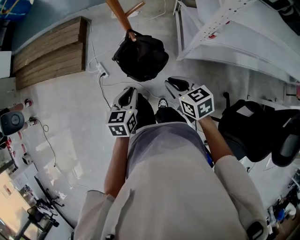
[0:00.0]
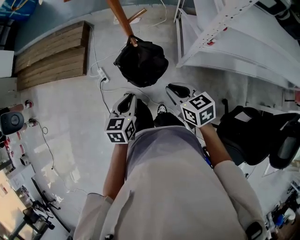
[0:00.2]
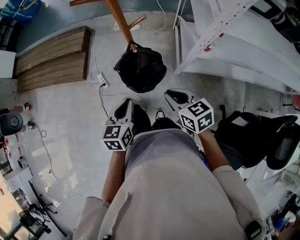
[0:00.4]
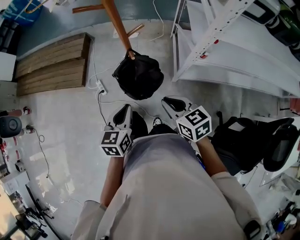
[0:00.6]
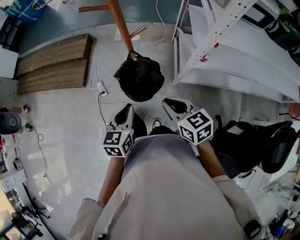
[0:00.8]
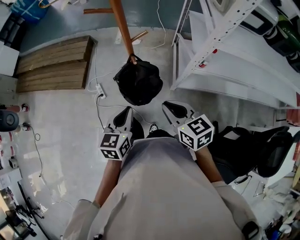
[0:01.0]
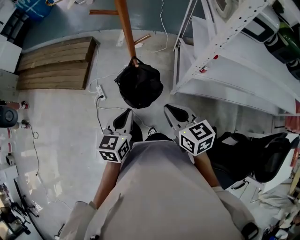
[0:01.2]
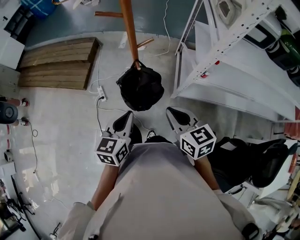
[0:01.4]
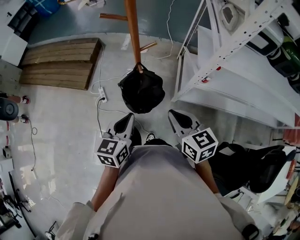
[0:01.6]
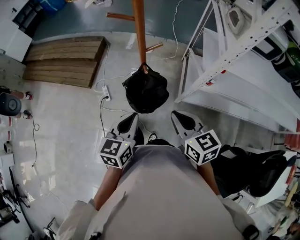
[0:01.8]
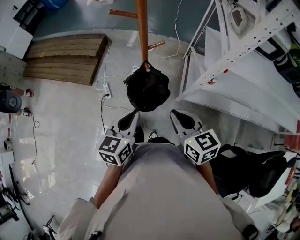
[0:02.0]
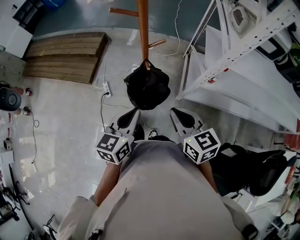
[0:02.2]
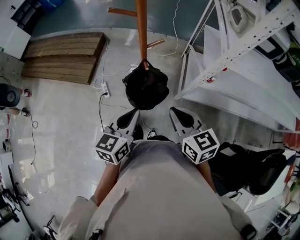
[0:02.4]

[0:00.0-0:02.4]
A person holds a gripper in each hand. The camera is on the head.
0.0 to 1.2 s: Both grippers travel together upward, approximately 10 cm.
1.2 to 2.4 s: The grippers move only a little.

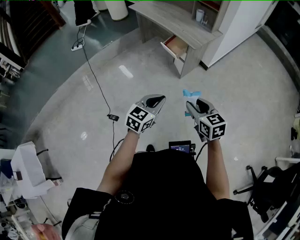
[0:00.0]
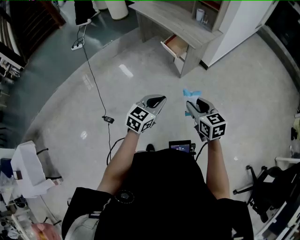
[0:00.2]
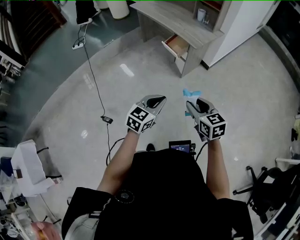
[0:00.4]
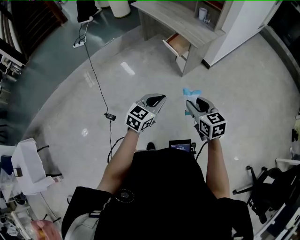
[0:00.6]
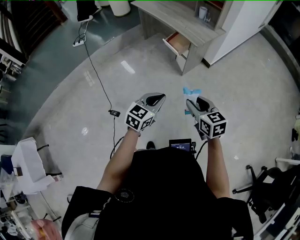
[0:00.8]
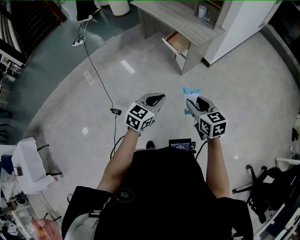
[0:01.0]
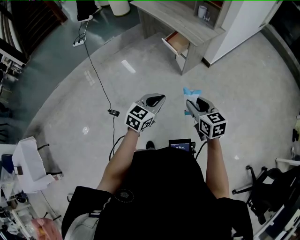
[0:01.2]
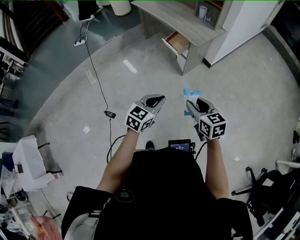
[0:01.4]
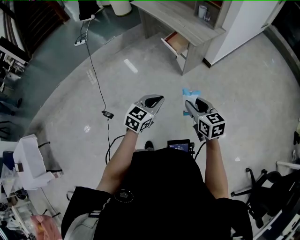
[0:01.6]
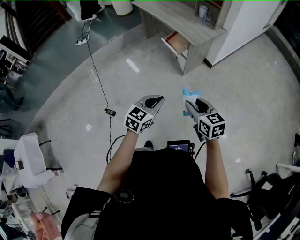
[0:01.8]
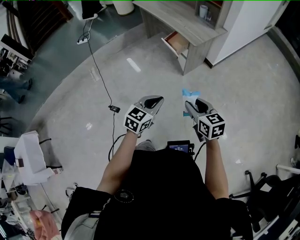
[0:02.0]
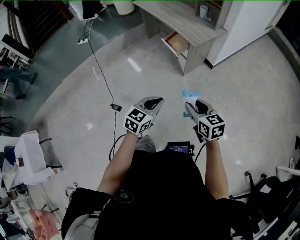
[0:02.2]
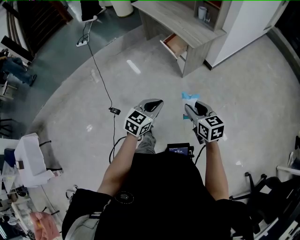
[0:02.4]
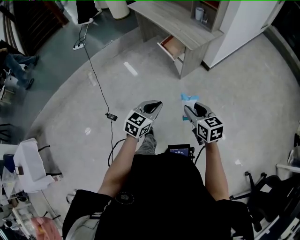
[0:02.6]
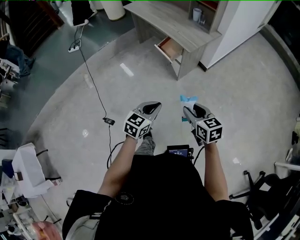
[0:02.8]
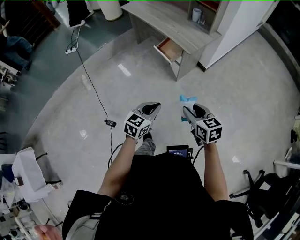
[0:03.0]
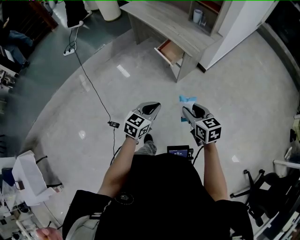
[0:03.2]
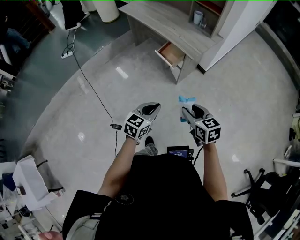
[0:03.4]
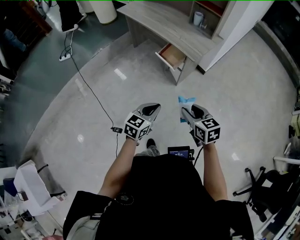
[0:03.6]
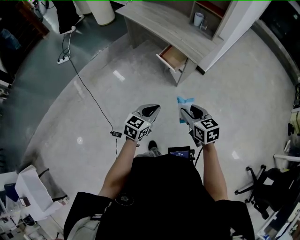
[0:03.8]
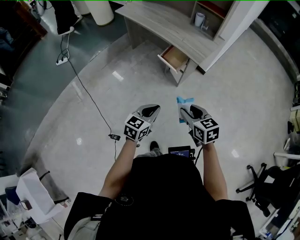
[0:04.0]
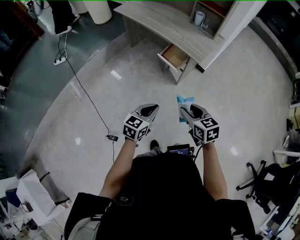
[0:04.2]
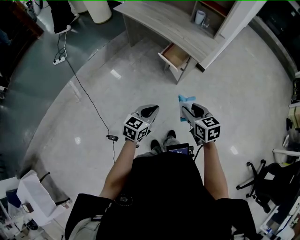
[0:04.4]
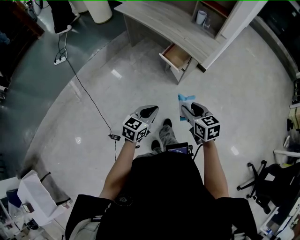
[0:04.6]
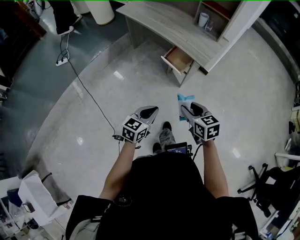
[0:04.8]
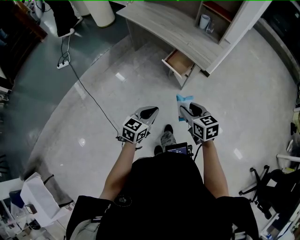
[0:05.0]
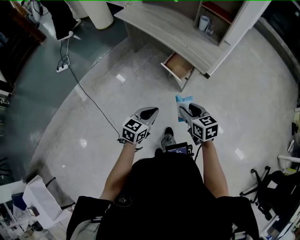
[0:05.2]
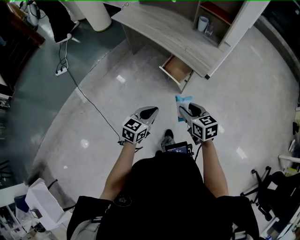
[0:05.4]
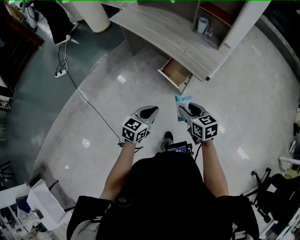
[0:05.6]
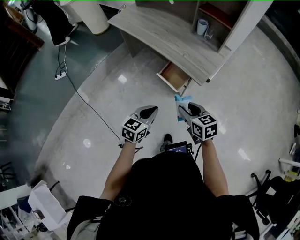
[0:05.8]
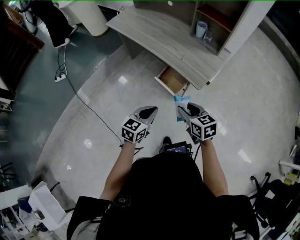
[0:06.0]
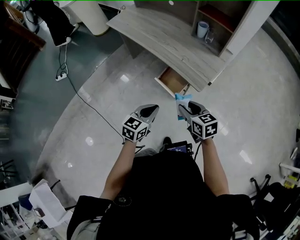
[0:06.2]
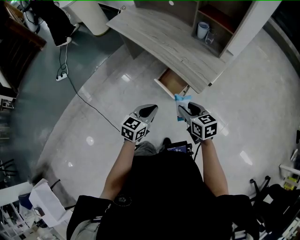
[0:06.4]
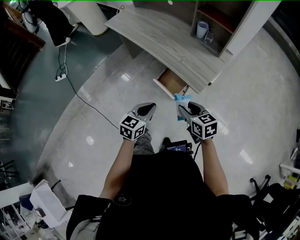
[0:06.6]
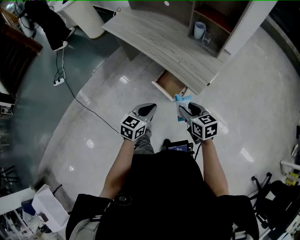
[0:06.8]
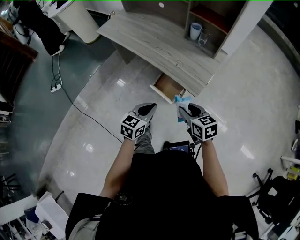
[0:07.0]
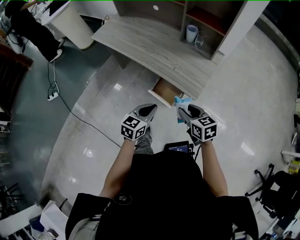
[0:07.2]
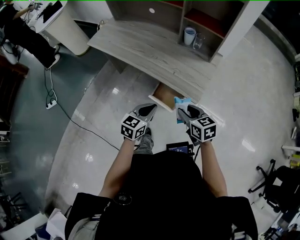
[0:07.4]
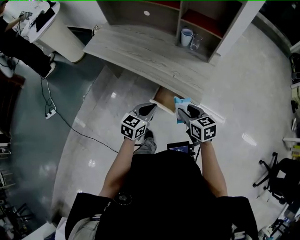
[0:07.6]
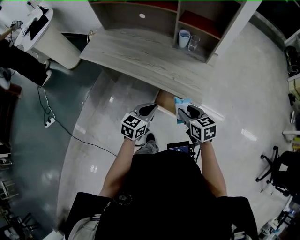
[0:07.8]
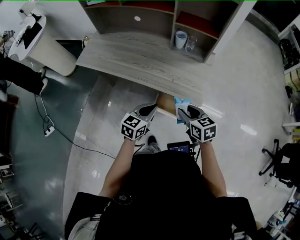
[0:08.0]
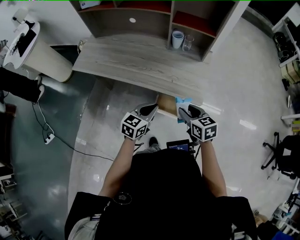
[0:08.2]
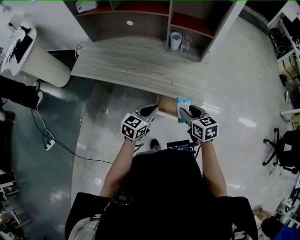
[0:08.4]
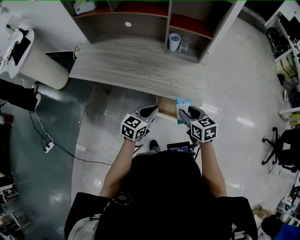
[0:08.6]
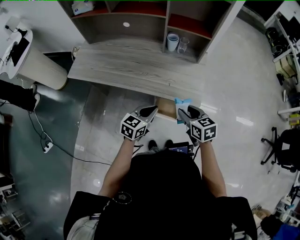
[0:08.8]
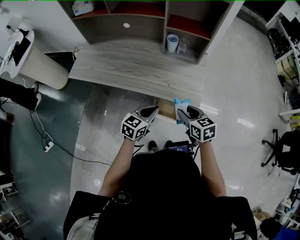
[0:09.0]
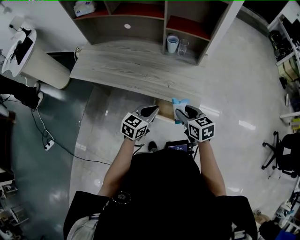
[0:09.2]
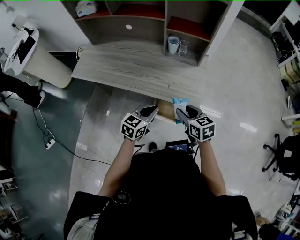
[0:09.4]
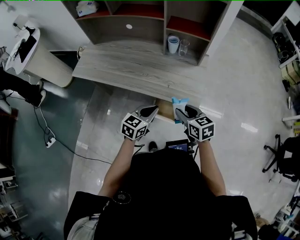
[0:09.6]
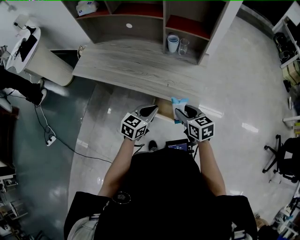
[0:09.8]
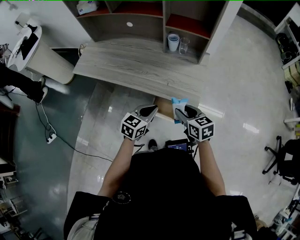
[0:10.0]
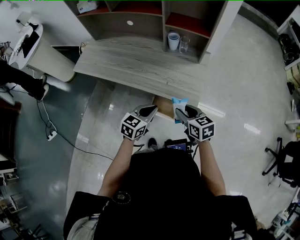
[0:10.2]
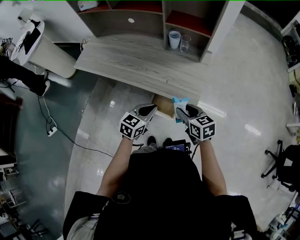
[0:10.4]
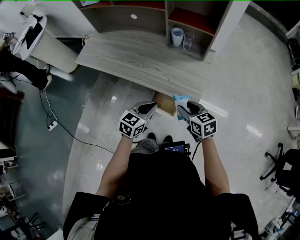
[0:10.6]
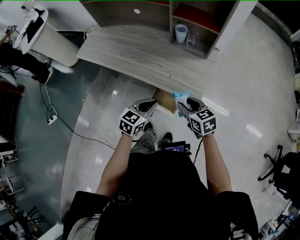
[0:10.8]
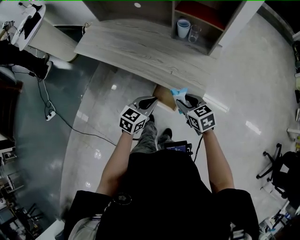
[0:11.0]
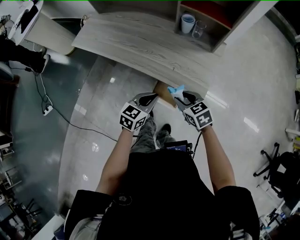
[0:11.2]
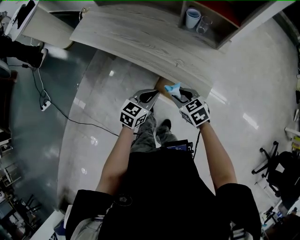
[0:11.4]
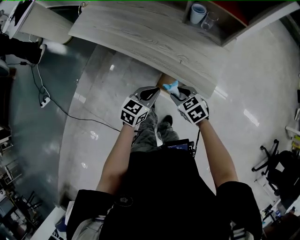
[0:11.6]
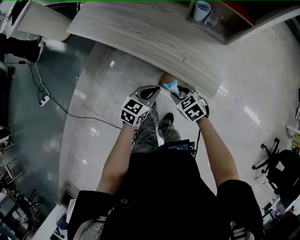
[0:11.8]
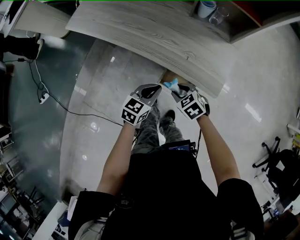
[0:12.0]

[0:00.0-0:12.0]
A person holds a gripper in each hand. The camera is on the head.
0.0 to 1.6 s: The grippers stay close to where they were, moving slightly.
1.6 to 3.0 s: The grippers both shift forward by approximately 5 cm.
3.0 to 4.4 s: The two grippers go some 15 cm to the left and forward.
4.4 to 6.0 s: Both grippers move forward, approximately 20 cm.
6.0 to 7.6 s: The grippers both shift forward by approximately 15 cm.
7.6 to 9.0 s: The left gripper moves forward, some 5 cm. Meanwhile the right gripper shifts by approximately 5 cm.
9.0 to 10.4 s: There are only small adjustments of the grippers.
10.4 to 12.0 s: The right gripper moves downward and to the left, roughly 20 cm, and rotates approximately 40 degrees, while the left gripper shifts roughly 10 cm downward and to the left.

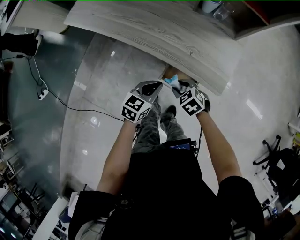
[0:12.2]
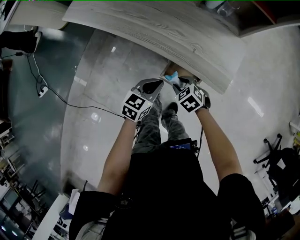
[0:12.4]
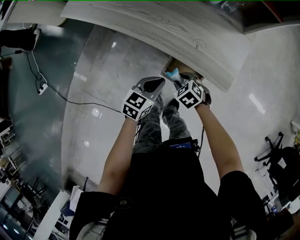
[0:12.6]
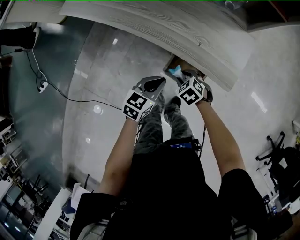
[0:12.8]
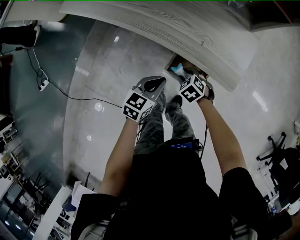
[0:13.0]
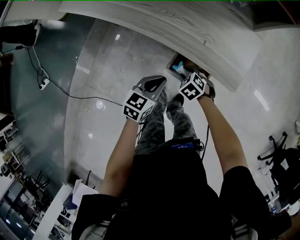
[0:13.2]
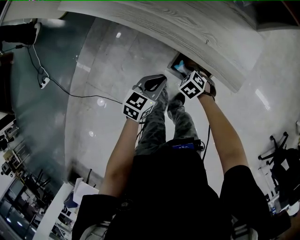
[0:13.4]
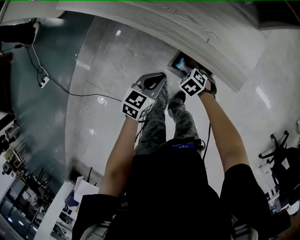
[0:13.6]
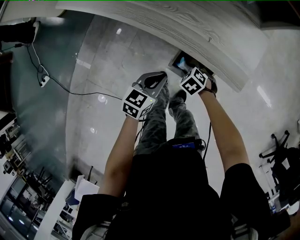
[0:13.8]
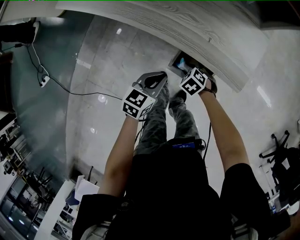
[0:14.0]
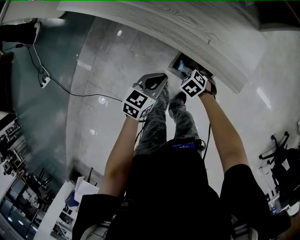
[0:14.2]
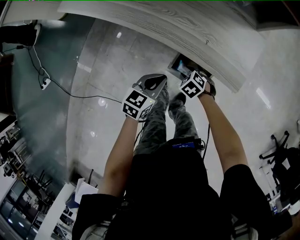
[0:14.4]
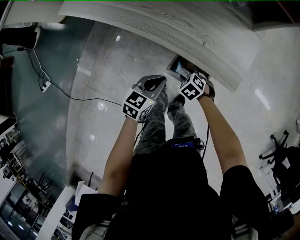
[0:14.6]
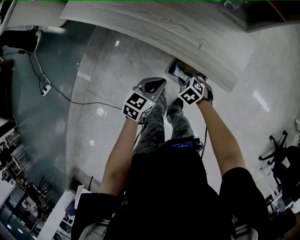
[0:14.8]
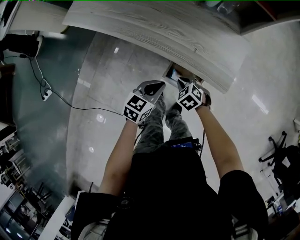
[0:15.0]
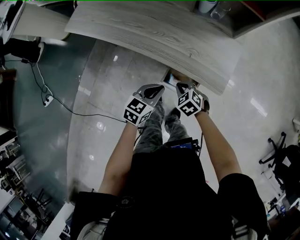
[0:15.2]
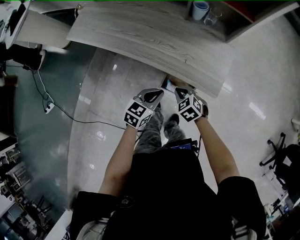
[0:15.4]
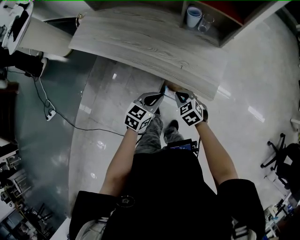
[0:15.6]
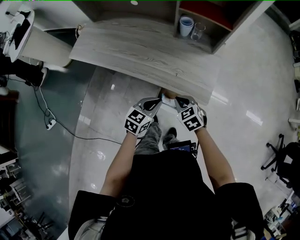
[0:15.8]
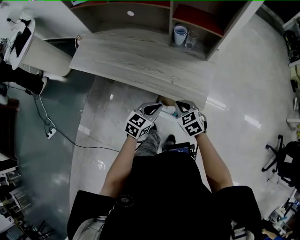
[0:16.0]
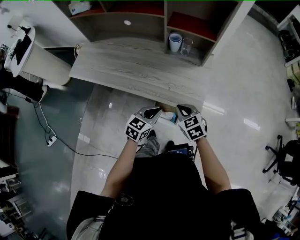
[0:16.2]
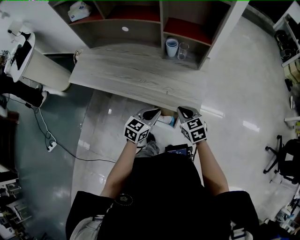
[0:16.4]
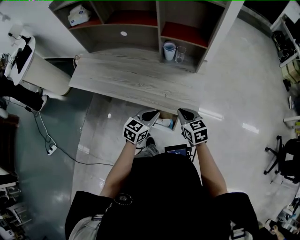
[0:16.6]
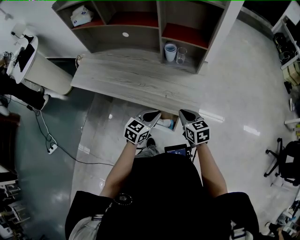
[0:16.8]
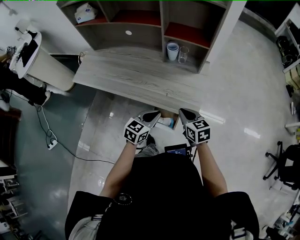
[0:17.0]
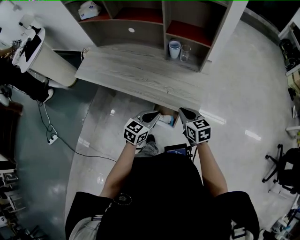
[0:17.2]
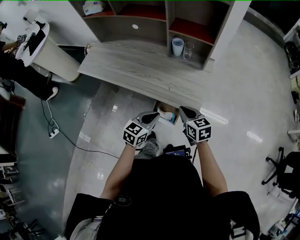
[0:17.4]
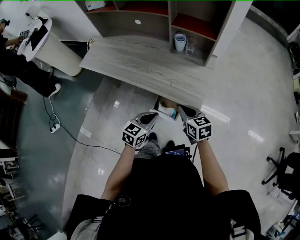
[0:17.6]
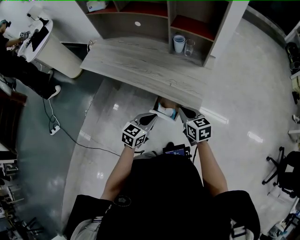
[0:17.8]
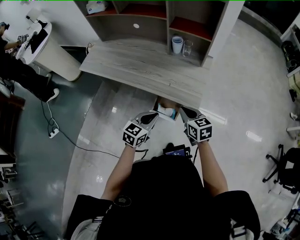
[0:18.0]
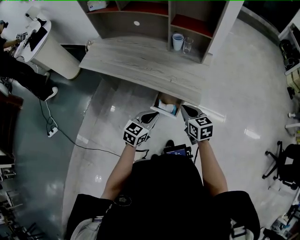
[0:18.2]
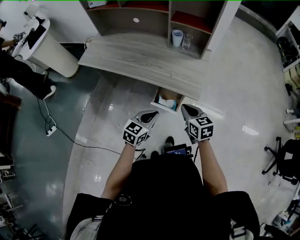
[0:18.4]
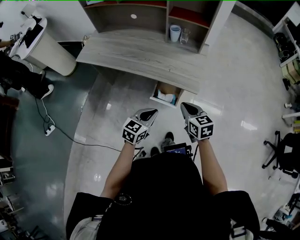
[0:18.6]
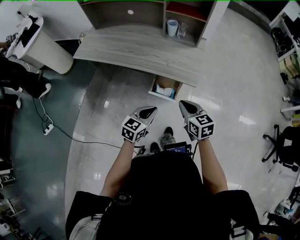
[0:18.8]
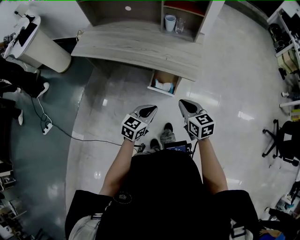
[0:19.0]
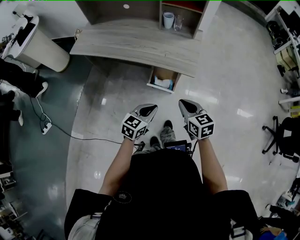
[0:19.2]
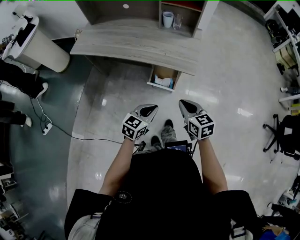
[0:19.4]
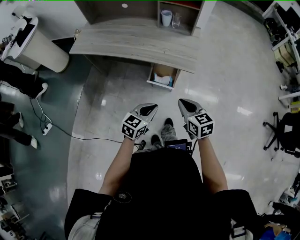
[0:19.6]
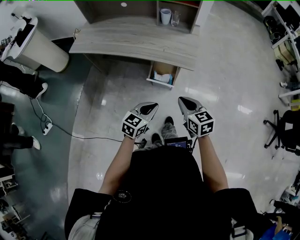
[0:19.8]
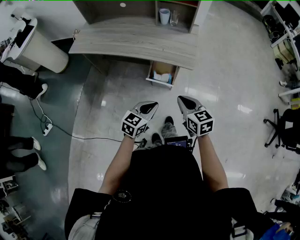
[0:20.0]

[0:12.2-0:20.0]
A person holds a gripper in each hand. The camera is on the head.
12.2 to 13.8 s: The right gripper heads downward, covering roughly 15 cm. Meanwhile the left gripper travels downward by roughly 5 cm.
13.8 to 15.4 s: The right gripper is displaced upward by roughly 15 cm, and closes up; the left gripper travels upward by about 10 cm.
15.4 to 16.8 s: The left gripper shifts about 10 cm upward and to the right, while the right gripper goes some 20 cm upward and to the right, and turns by some 40 degrees.
16.8 to 18.4 s: The grippers both shift backward by approximately 15 cm.
18.4 to 20.0 s: Both grippers travel together backward, roughly 15 cm.

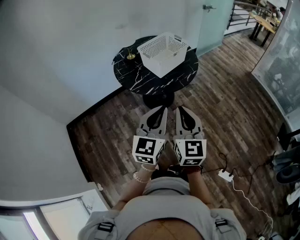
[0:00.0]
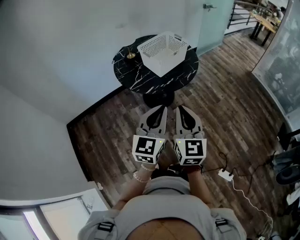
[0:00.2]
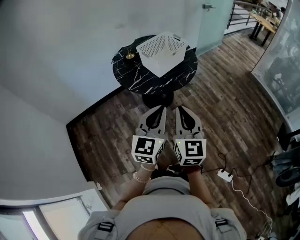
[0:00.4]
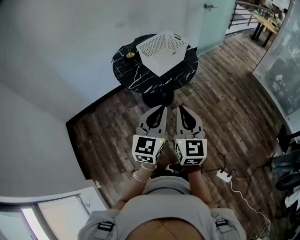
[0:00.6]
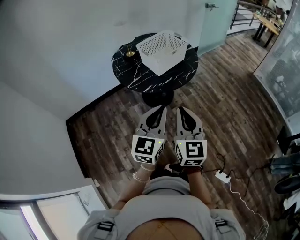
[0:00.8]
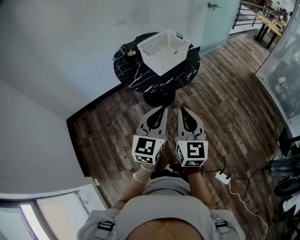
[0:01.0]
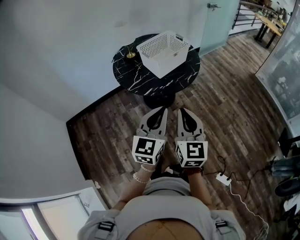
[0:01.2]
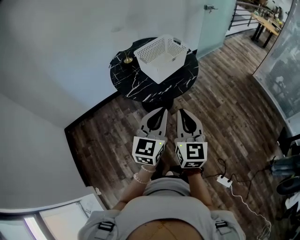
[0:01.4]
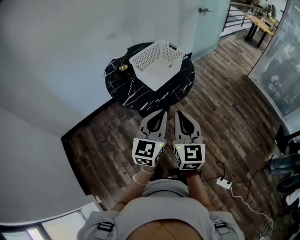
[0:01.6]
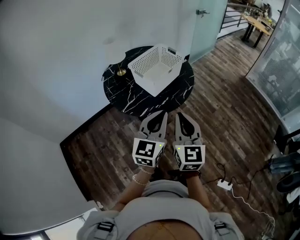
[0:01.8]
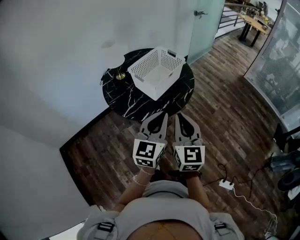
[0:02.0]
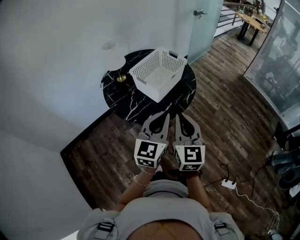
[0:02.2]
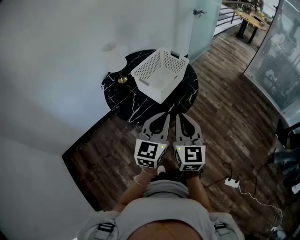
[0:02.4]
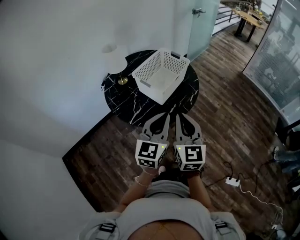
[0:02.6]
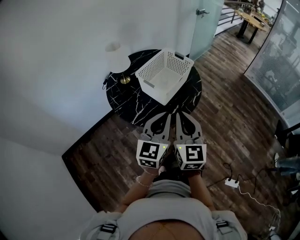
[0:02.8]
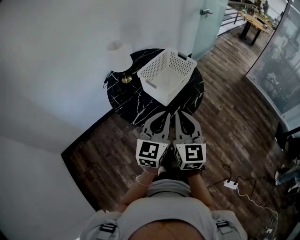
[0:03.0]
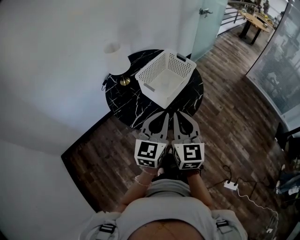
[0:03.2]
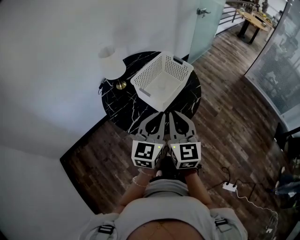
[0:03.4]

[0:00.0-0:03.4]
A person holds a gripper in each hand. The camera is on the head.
0.0 to 1.6 s: Both grippers travel together forward, about 10 cm.
1.6 to 3.4 s: Both grippers move forward and to the left, approximately 20 cm.
